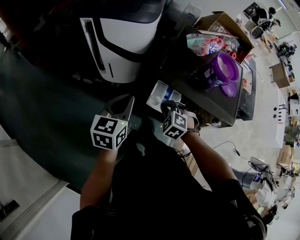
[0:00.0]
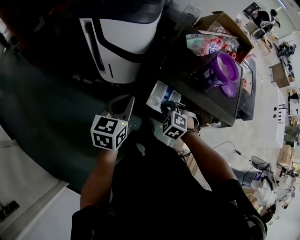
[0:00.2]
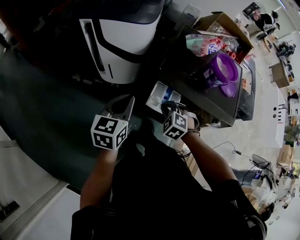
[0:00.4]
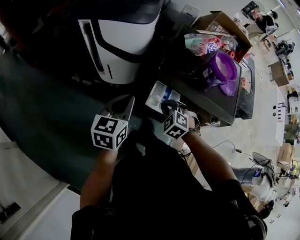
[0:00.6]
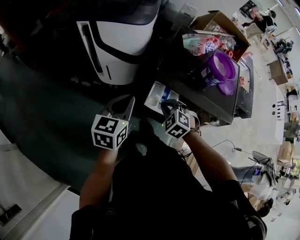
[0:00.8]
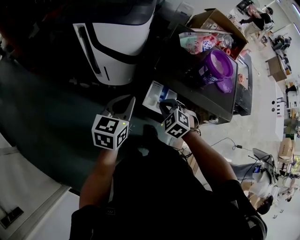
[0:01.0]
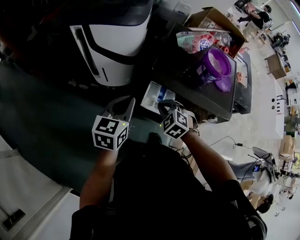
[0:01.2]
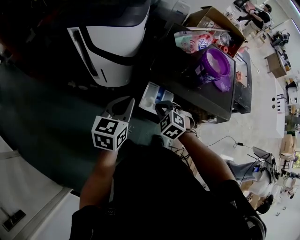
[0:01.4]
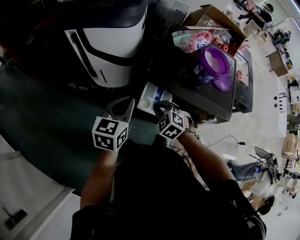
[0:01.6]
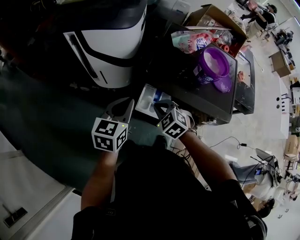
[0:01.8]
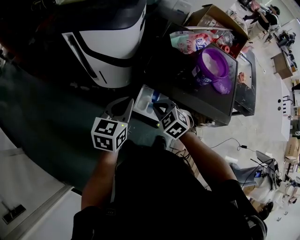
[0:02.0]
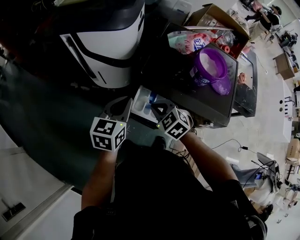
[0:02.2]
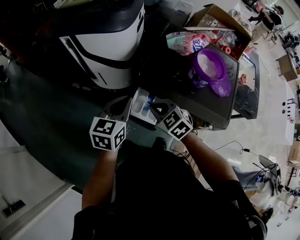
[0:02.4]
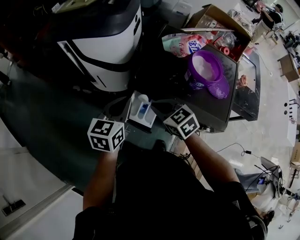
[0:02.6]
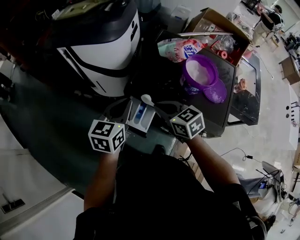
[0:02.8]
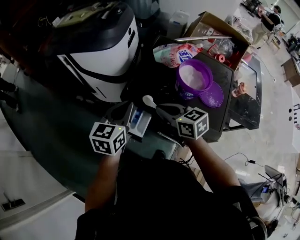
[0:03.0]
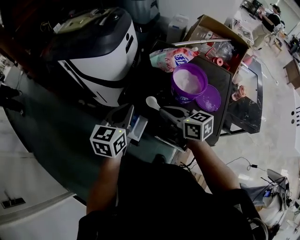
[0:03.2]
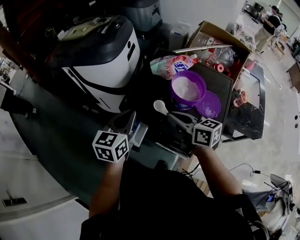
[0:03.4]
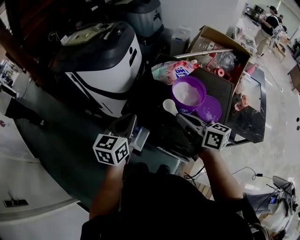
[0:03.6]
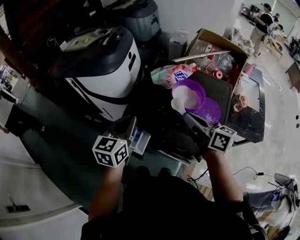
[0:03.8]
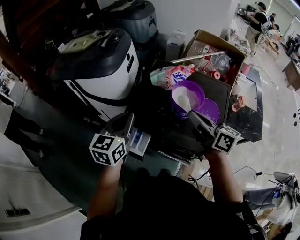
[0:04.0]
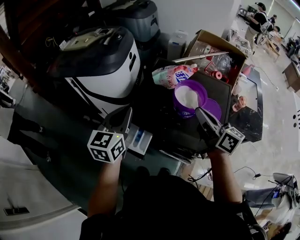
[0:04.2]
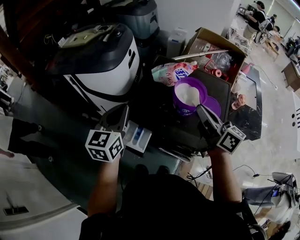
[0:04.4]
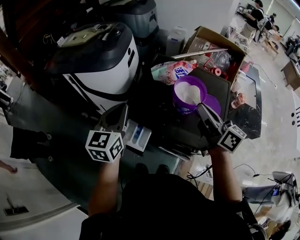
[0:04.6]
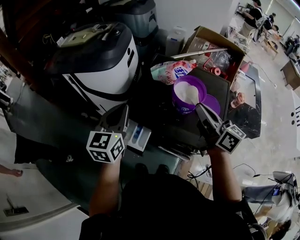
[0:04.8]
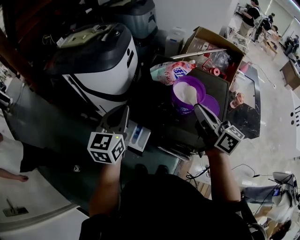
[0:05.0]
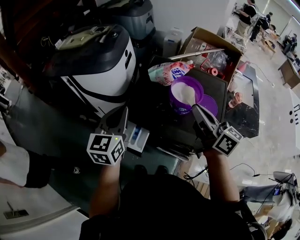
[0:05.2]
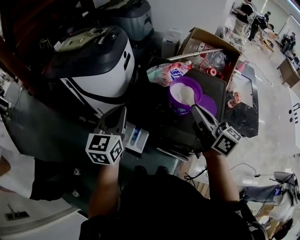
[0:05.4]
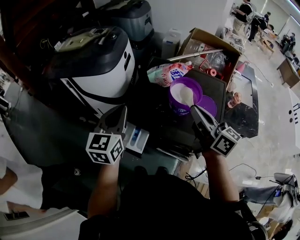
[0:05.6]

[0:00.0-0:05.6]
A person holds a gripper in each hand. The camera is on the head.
0.0 to 1.4 s: The grippers move only a little.
1.4 to 2.8 s: The left gripper goes about 15 cm to the right. Meanwhile the right gripper shifts some 15 cm to the right and upward, and changes its angle by roughly 50 degrees.
2.8 to 4.2 s: The left gripper is displaced upward and to the right by approximately 10 cm. Meanwhile the right gripper shifts some 25 cm to the right and upward, and points its fingers roughly 30 degrees further upward.
4.2 to 5.6 s: The grippers stay close to where they were, moving slightly.

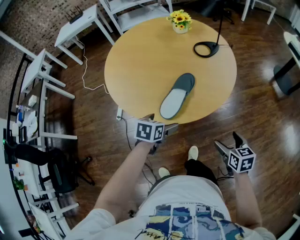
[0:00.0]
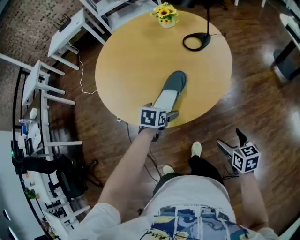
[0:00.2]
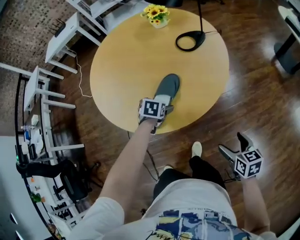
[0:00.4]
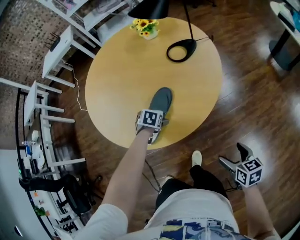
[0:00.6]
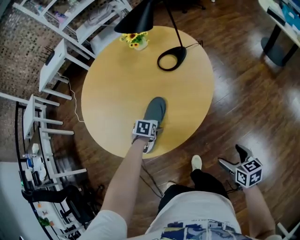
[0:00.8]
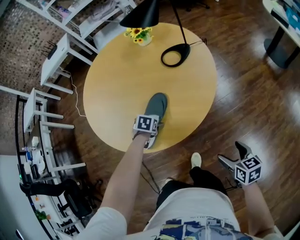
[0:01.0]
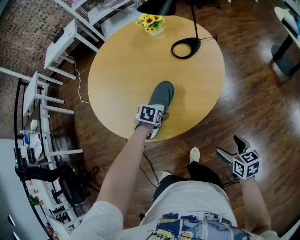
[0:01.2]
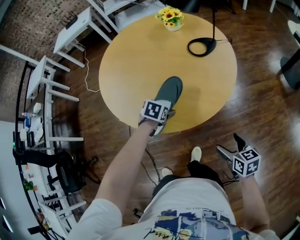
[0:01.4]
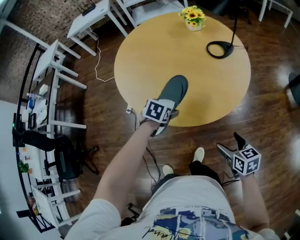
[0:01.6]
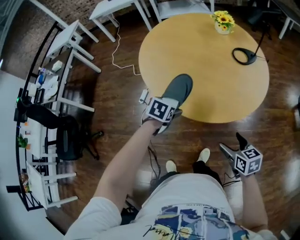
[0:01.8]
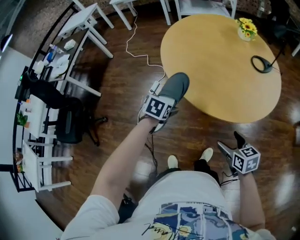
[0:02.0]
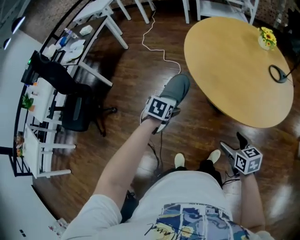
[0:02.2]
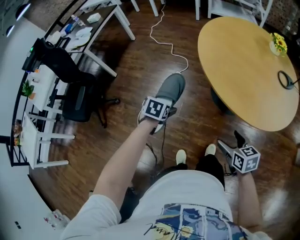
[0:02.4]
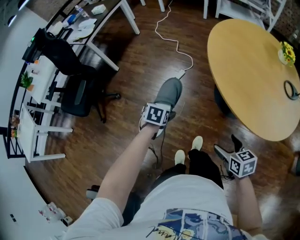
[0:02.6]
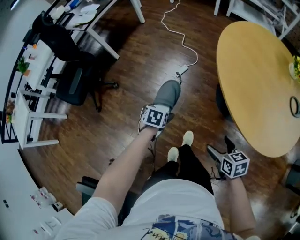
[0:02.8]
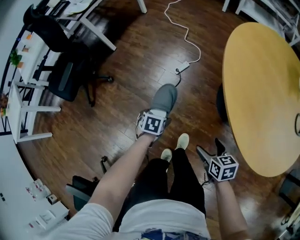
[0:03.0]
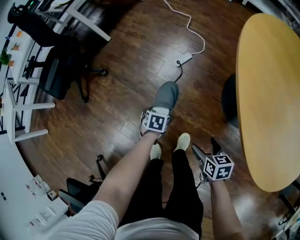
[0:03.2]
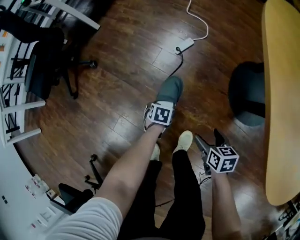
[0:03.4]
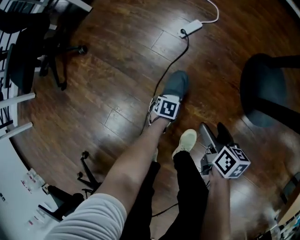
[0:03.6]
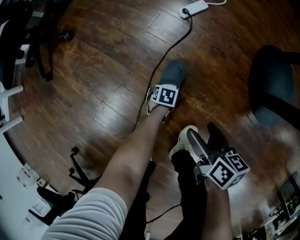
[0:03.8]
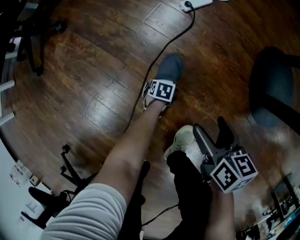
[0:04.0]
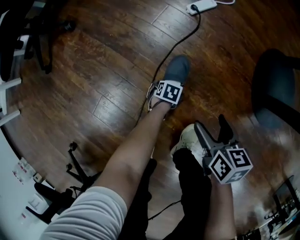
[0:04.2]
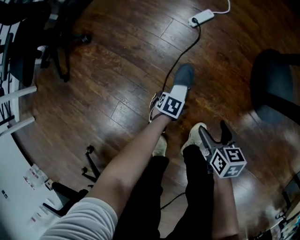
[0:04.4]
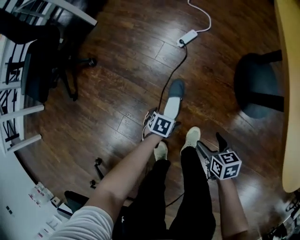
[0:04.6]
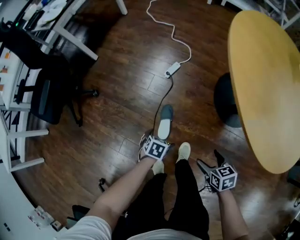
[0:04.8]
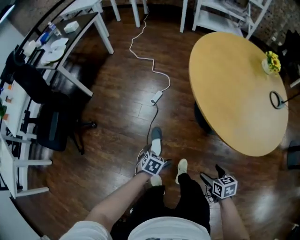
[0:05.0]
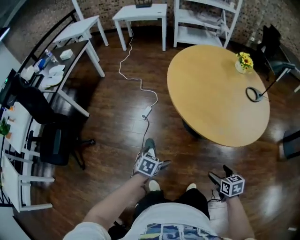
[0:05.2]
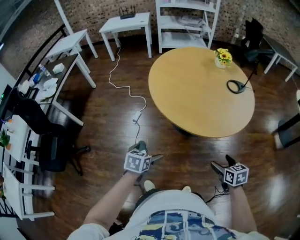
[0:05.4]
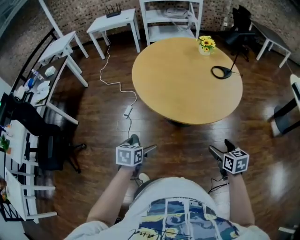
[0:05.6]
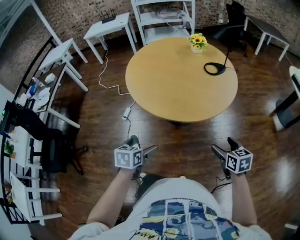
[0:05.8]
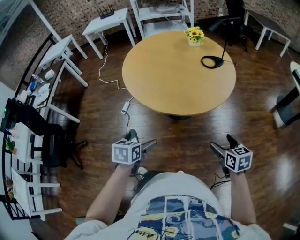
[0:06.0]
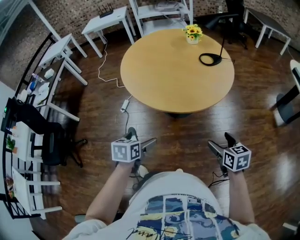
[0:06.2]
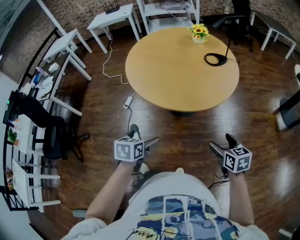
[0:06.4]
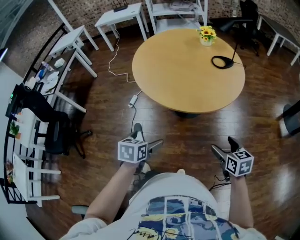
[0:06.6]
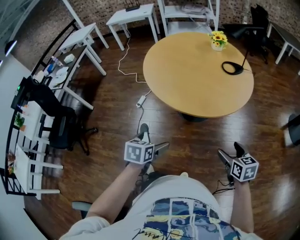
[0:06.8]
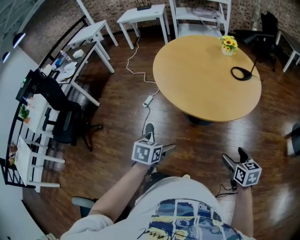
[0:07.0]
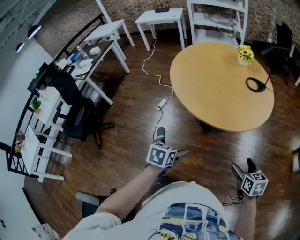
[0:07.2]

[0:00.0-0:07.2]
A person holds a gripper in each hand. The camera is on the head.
0.0 to 1.4 s: The left gripper moves approximately 20 cm.
1.4 to 2.8 s: The pair of grippers is taken approximately 60 cm. The left gripper rotates around the line of its fingers by roughly 40 degrees, counterclockwise from behind. The right gripper turns by about 40 degrees.
2.8 to 4.4 s: Both grippers move downward, roughly 60 cm.
4.4 to 5.8 s: Both grippers are carried roughly 50 cm. The two grippers go some 80 cm upward. The right gripper changes its angle by some 40 degrees, while the left gripper rotates approximately 40 degrees.
5.8 to 7.2 s: The two grippers go about 5 cm backward.

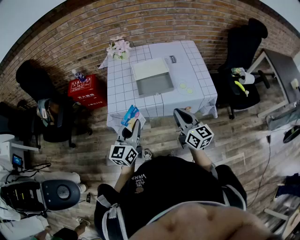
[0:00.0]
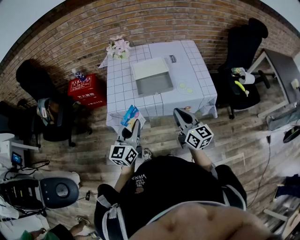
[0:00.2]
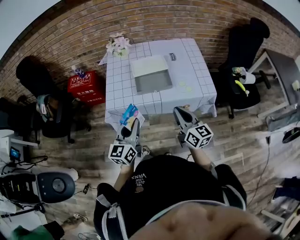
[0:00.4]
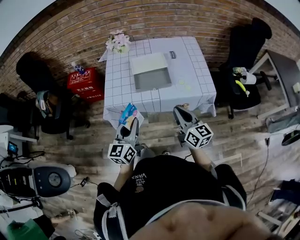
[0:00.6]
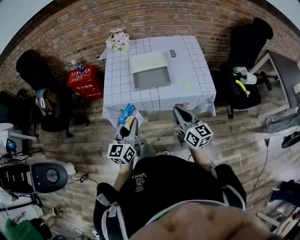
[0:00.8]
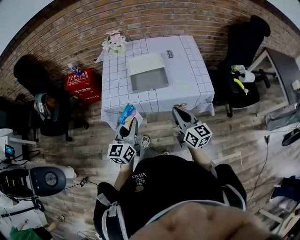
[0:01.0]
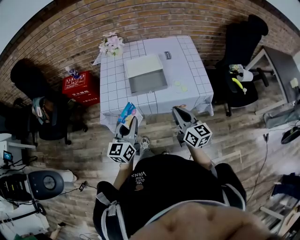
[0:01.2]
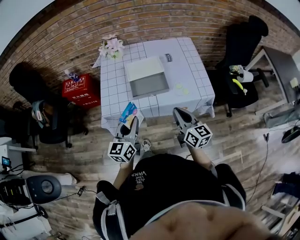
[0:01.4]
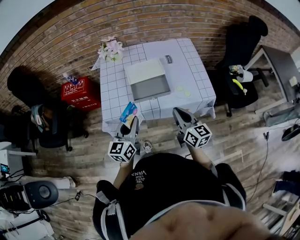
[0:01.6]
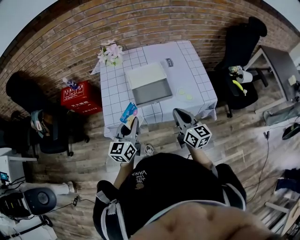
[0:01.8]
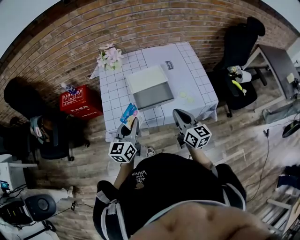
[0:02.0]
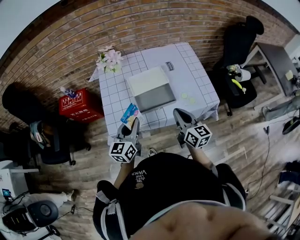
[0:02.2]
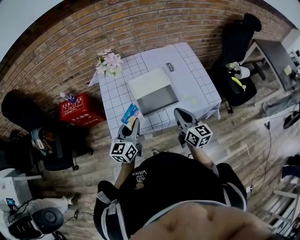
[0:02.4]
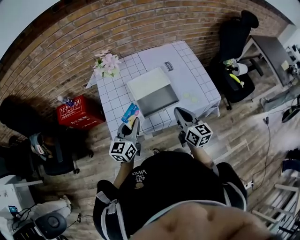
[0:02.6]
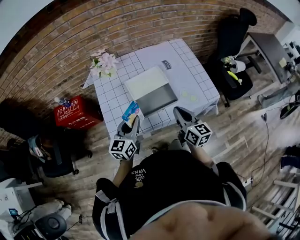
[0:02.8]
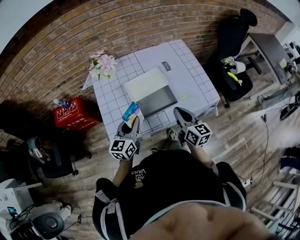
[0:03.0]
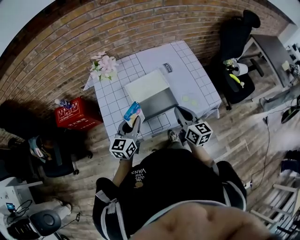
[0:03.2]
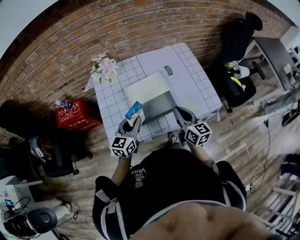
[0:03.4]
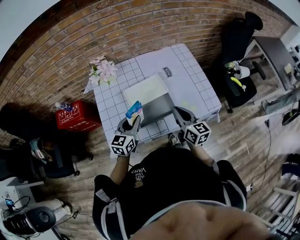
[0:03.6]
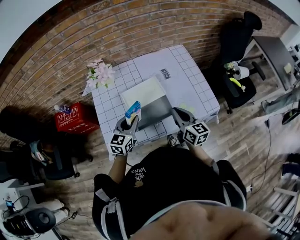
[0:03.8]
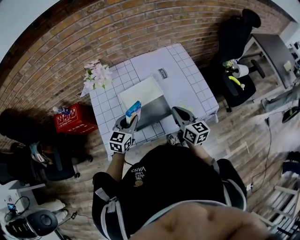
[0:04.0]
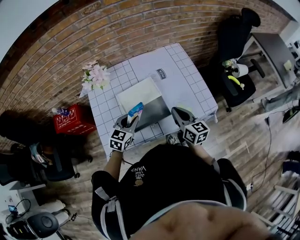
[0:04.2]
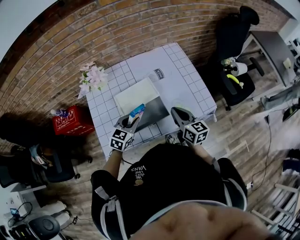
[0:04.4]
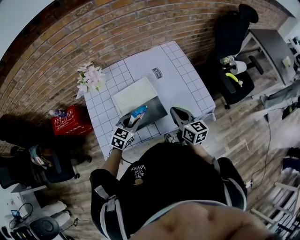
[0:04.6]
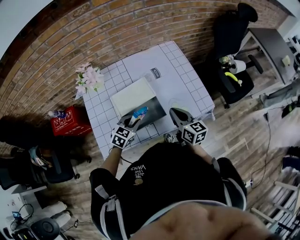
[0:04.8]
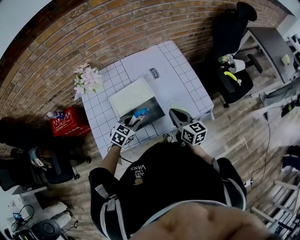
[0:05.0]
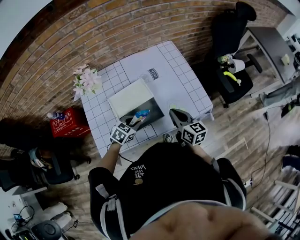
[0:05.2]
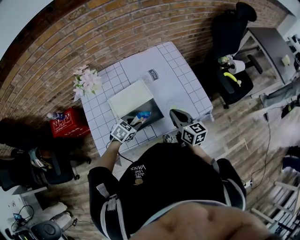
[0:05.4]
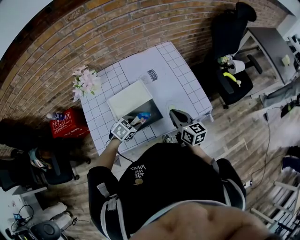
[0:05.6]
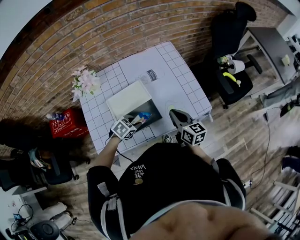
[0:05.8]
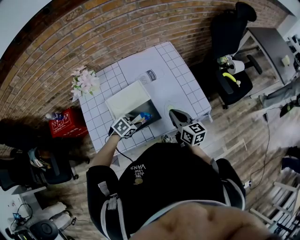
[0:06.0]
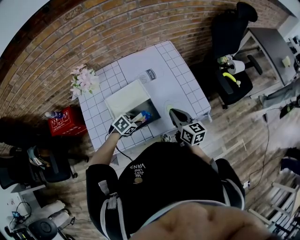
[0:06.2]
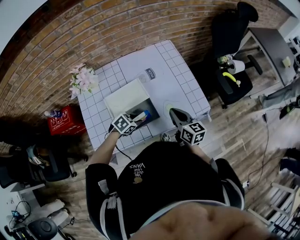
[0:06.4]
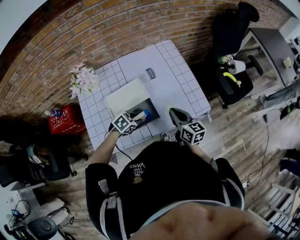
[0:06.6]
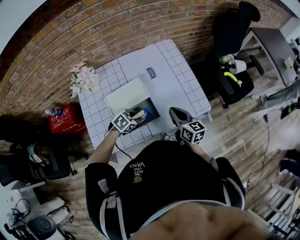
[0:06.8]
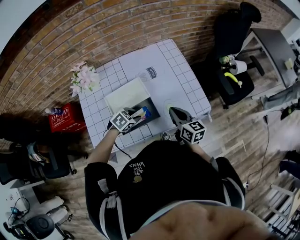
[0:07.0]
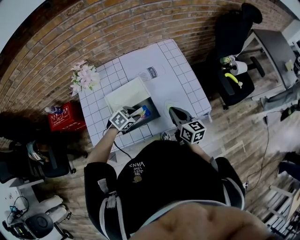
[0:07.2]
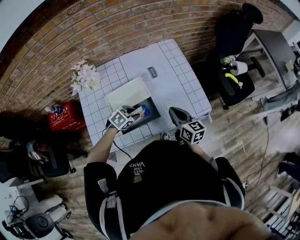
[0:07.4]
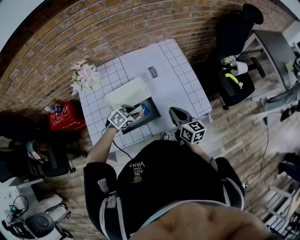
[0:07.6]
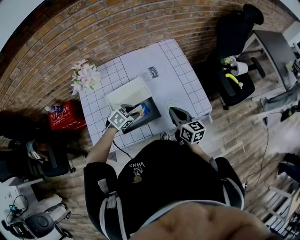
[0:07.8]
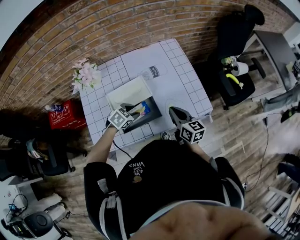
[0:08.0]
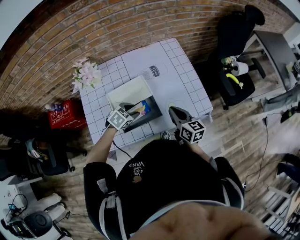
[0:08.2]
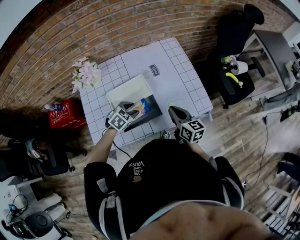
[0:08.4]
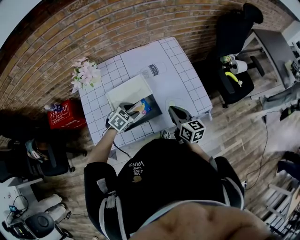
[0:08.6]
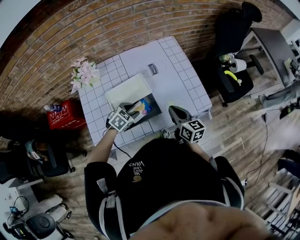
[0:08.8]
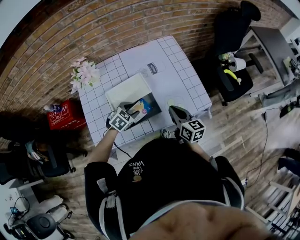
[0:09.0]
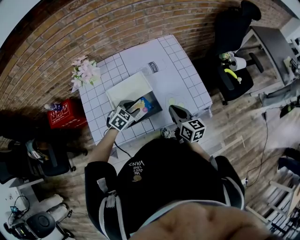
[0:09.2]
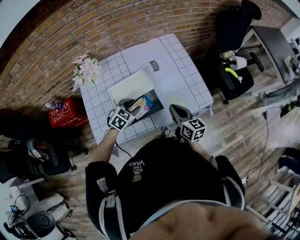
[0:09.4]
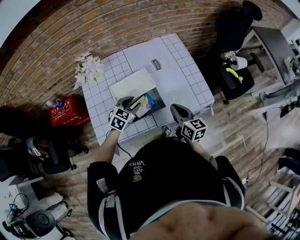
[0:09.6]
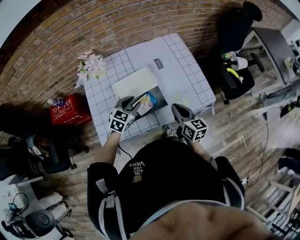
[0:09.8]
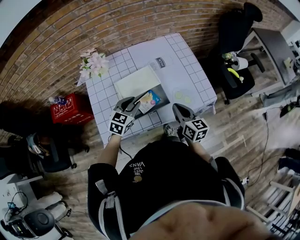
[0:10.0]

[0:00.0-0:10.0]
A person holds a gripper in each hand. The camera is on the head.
0.0 to 1.4 s: The left gripper goes approximately 5 cm forward. Meanwhile the right gripper changes place by roughly 5 cm.
1.4 to 2.8 s: Both grippers travel together forward and to the left, roughly 15 cm.
2.8 to 4.2 s: The left gripper travels forward, to the right and downward by roughly 15 cm, and turns by approximately 30 degrees. Meanwhile the right gripper travels forward and to the right by approximately 10 cm.
4.2 to 5.8 s: The left gripper is displaced downward and to the right by roughly 10 cm, and changes its angle by about 40 degrees. The right gripper shifts by roughly 5 cm.
5.8 to 8.6 s: The grippers move only a little.
8.6 to 10.0 s: The left gripper moves upward, some 10 cm, and rotates roughly 30 degrees. The right gripper moves backward, some 5 cm.

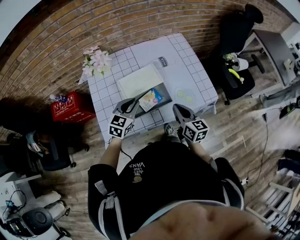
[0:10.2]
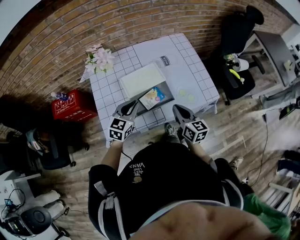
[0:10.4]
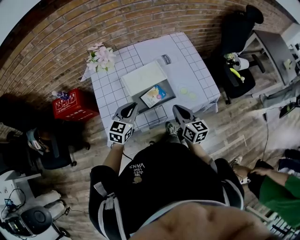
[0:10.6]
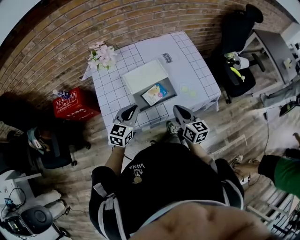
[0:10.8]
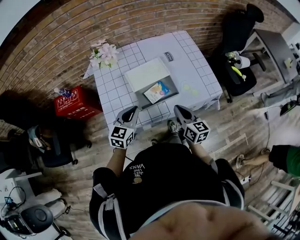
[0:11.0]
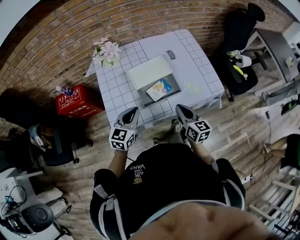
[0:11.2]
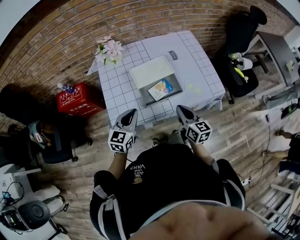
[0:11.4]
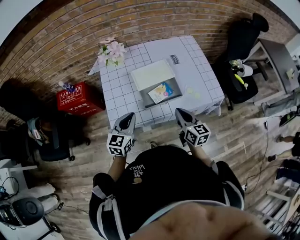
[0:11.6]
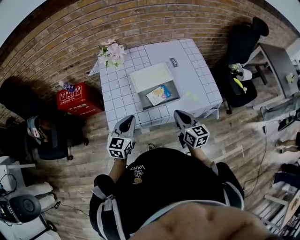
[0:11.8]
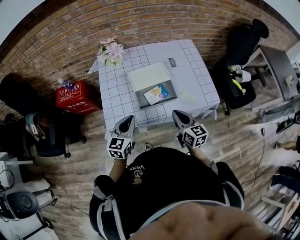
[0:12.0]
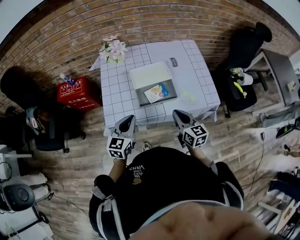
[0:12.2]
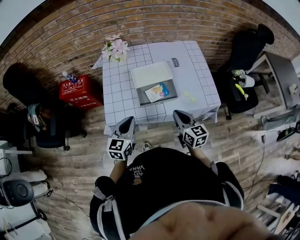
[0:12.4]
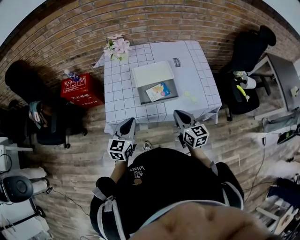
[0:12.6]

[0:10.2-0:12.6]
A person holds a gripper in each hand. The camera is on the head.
10.2 to 11.4 s: The left gripper heads backward and to the left, covering approximately 15 cm. Meanwhile the right gripper is displaced backward by roughly 5 cm.
11.4 to 12.6 s: The left gripper travels backward by roughly 5 cm.
